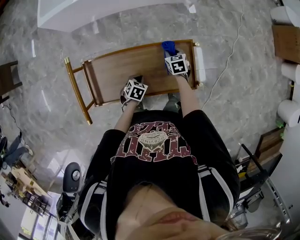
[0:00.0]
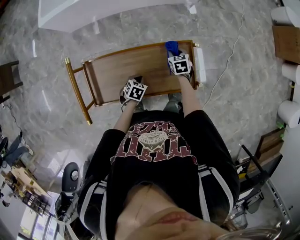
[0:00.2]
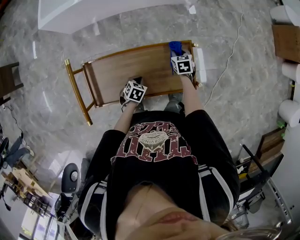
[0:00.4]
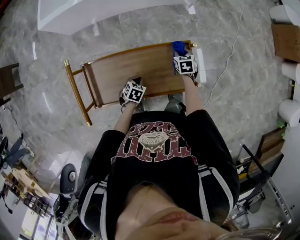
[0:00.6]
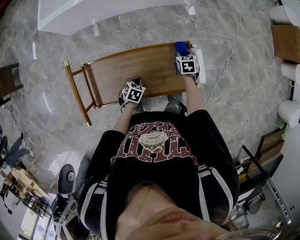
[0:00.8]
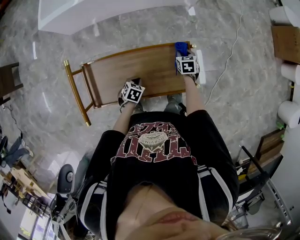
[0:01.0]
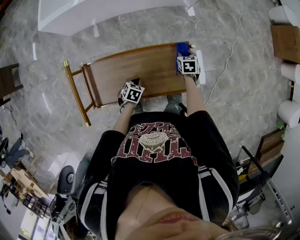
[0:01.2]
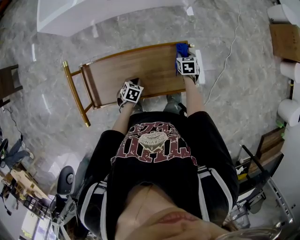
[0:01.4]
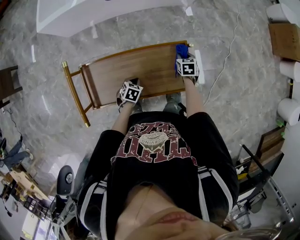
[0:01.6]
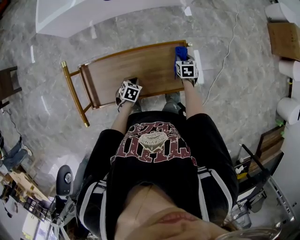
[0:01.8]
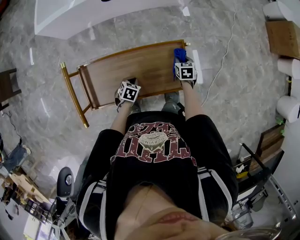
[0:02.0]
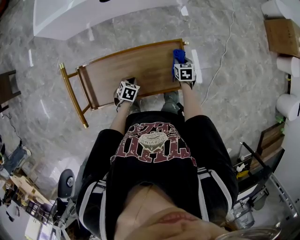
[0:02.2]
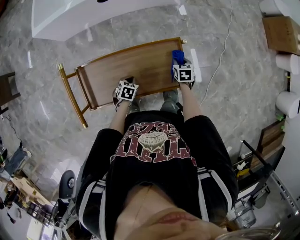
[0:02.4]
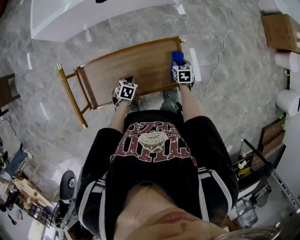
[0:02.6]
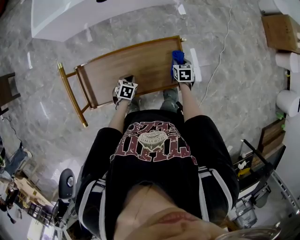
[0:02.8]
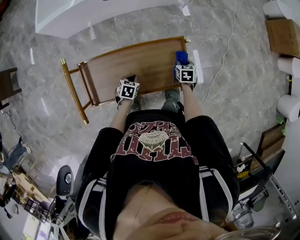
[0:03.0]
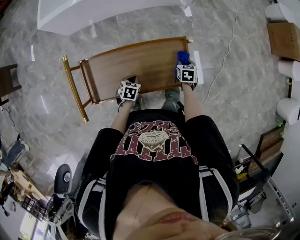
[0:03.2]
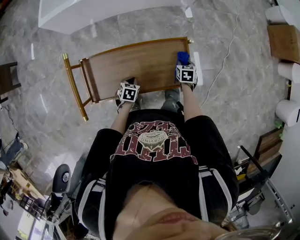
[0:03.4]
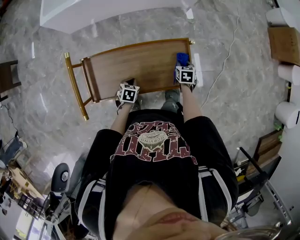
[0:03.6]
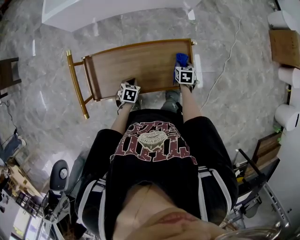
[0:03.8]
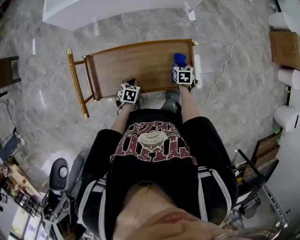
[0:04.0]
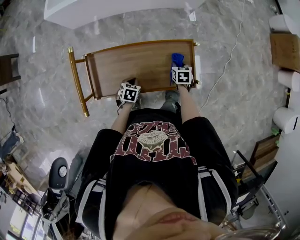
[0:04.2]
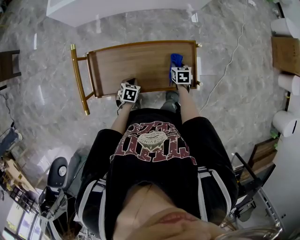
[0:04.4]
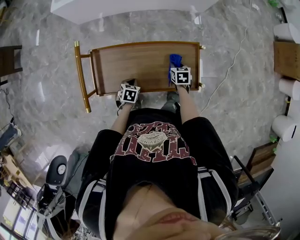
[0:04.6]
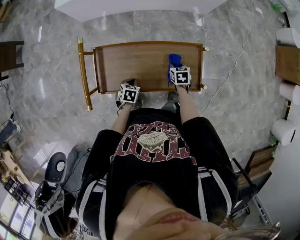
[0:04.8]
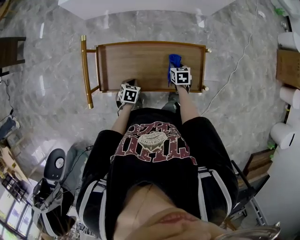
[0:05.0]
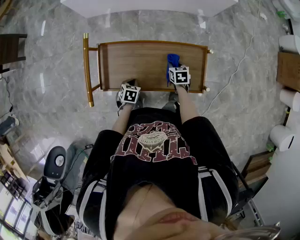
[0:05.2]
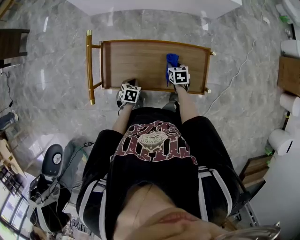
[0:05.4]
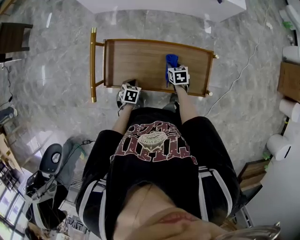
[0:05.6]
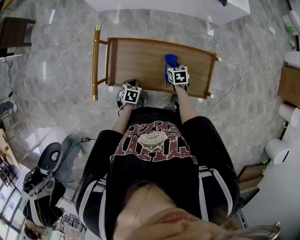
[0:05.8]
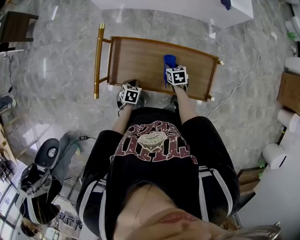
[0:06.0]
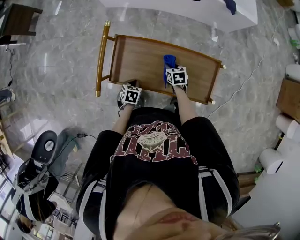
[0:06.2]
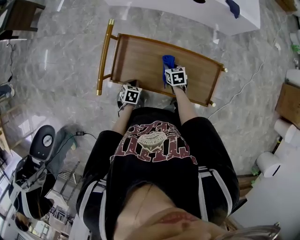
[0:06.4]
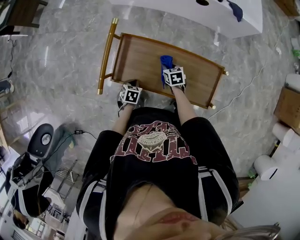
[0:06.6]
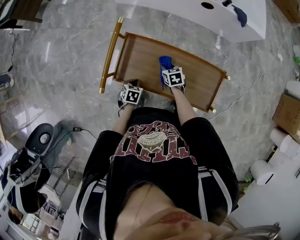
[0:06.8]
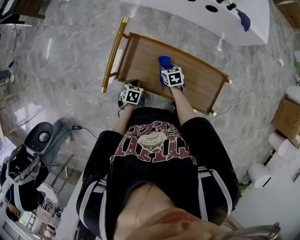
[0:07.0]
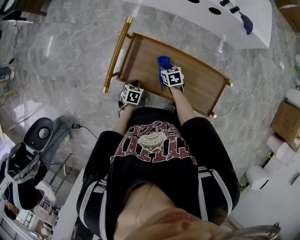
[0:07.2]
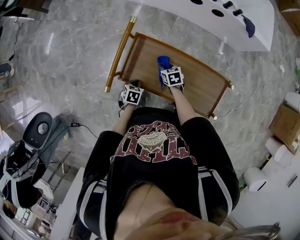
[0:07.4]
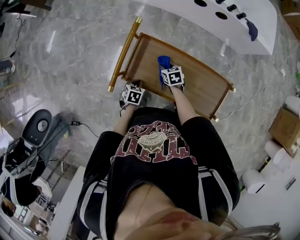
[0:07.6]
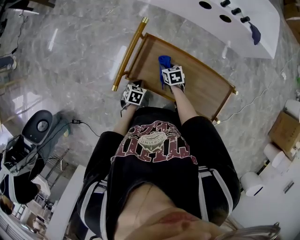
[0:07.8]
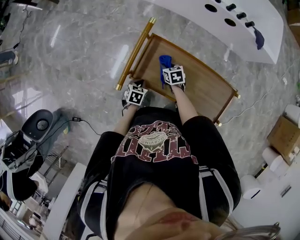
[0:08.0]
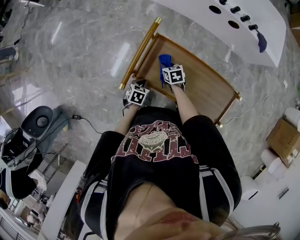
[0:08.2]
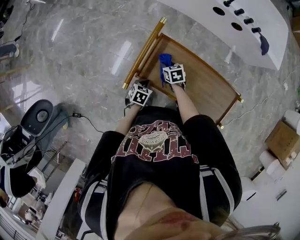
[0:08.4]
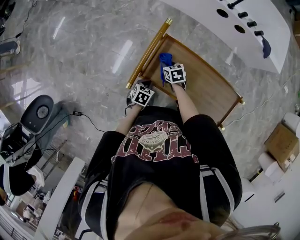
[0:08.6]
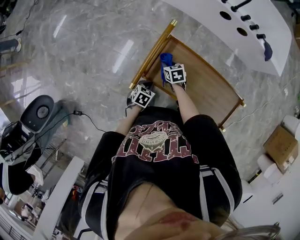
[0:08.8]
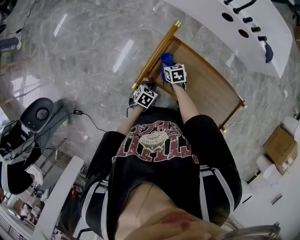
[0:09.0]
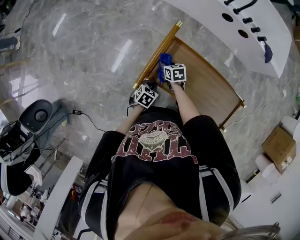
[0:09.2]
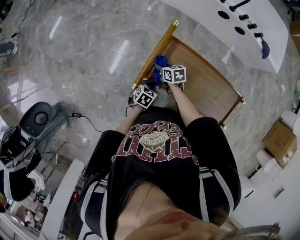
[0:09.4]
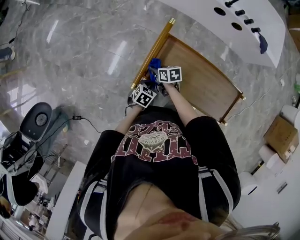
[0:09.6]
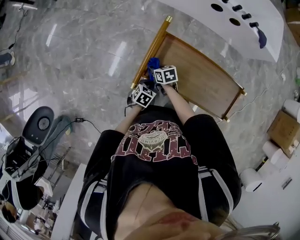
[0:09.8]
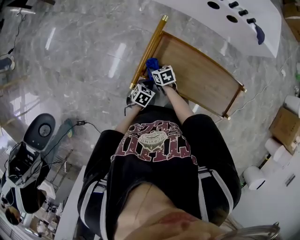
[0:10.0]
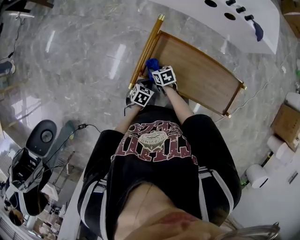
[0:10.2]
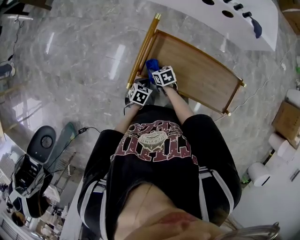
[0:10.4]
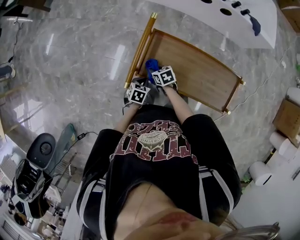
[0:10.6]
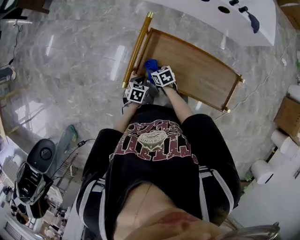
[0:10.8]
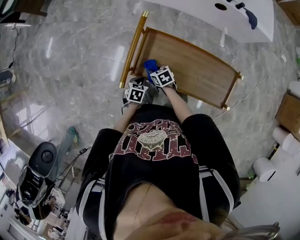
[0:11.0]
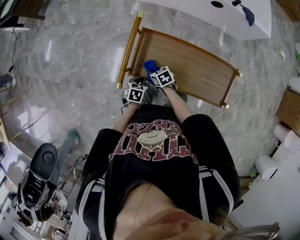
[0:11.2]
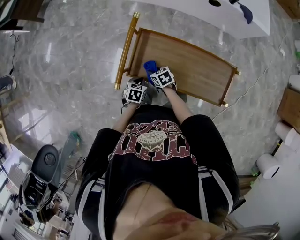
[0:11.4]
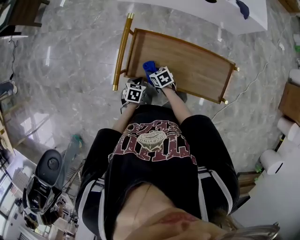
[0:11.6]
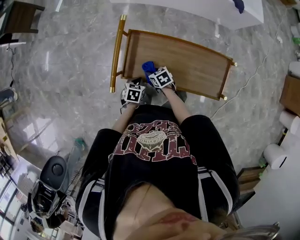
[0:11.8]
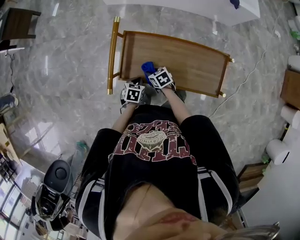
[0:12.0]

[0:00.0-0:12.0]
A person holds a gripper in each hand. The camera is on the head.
0:00.0 to 0:01.6: The right gripper heads to the right, covering approximately 10 cm.
0:01.6 to 0:03.0: The right gripper heads backward, covering some 5 cm.
0:03.0 to 0:04.4: The left gripper ends up about 5 cm from where it was; the right gripper travels to the left by roughly 10 cm.
0:04.4 to 0:06.0: The left gripper goes some 10 cm to the left. The right gripper travels to the left by some 15 cm, and swivels about 20 degrees.
0:06.0 to 0:07.6: The left gripper goes approximately 10 cm to the left, while the right gripper goes some 15 cm to the left.
0:07.6 to 0:09.0: The right gripper travels to the left by roughly 15 cm, while the left gripper moves approximately 5 cm.
0:09.0 to 0:10.4: The right gripper goes roughly 5 cm backward.
0:10.4 to 0:12.0: The right gripper moves to the right and backward, roughly 10 cm; the left gripper moves to the right, some 5 cm.

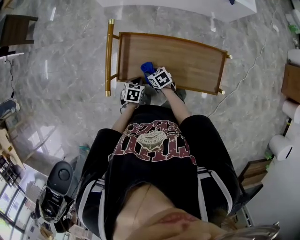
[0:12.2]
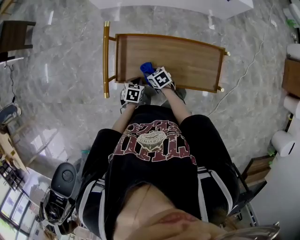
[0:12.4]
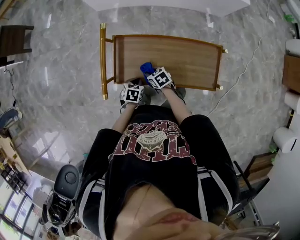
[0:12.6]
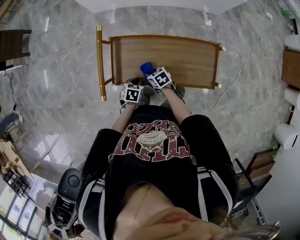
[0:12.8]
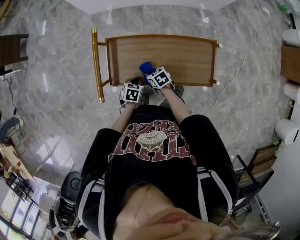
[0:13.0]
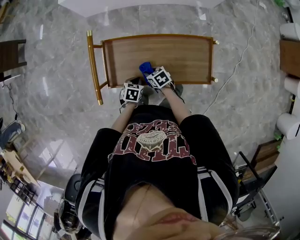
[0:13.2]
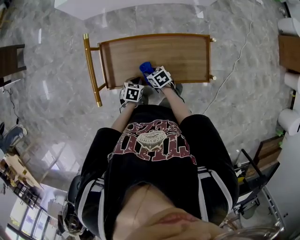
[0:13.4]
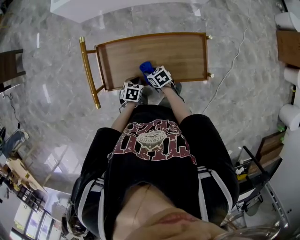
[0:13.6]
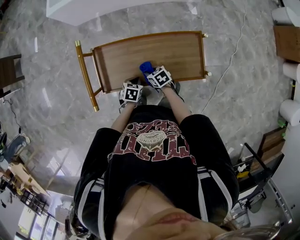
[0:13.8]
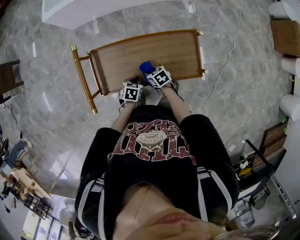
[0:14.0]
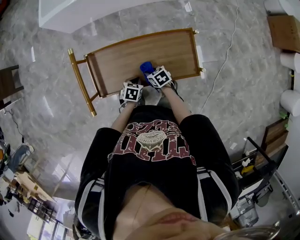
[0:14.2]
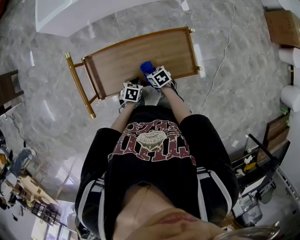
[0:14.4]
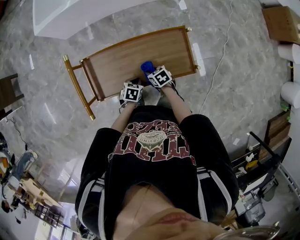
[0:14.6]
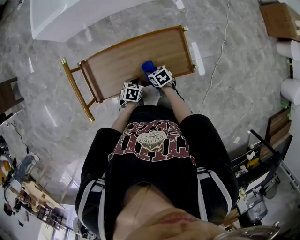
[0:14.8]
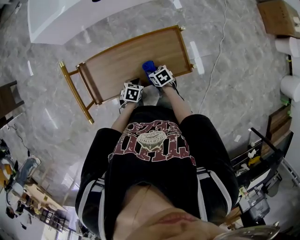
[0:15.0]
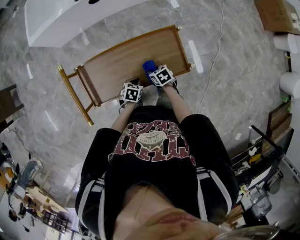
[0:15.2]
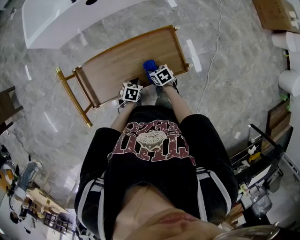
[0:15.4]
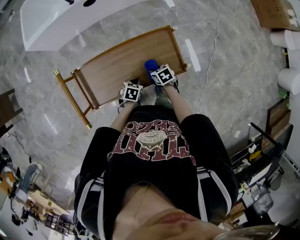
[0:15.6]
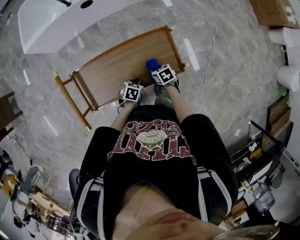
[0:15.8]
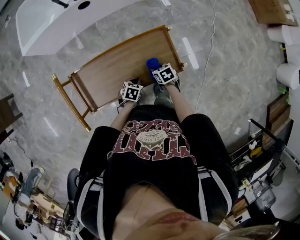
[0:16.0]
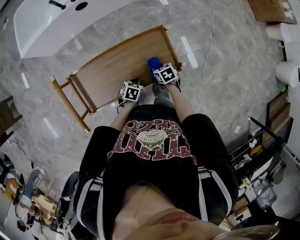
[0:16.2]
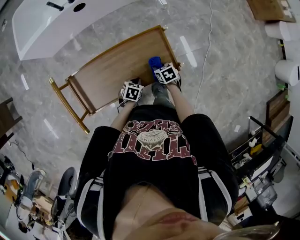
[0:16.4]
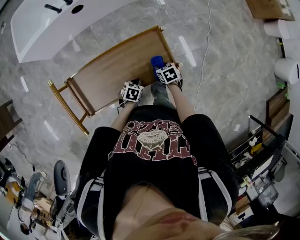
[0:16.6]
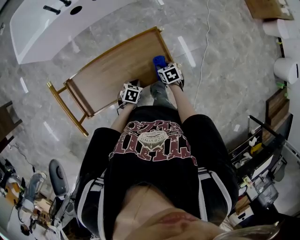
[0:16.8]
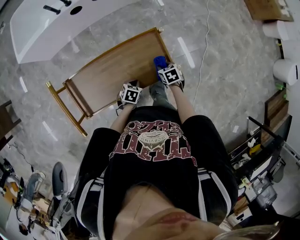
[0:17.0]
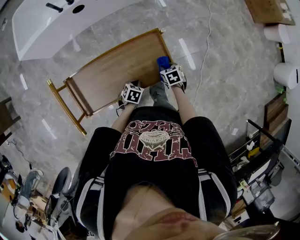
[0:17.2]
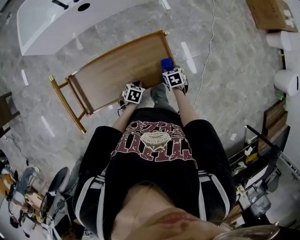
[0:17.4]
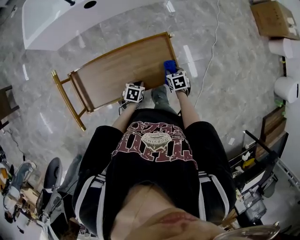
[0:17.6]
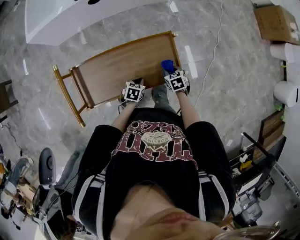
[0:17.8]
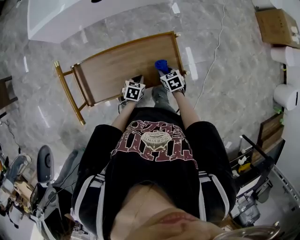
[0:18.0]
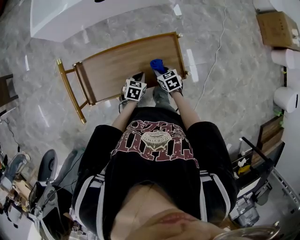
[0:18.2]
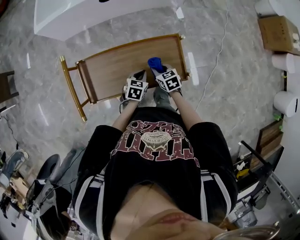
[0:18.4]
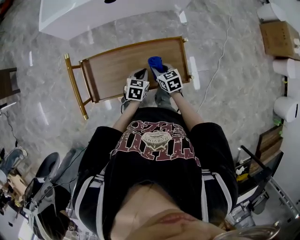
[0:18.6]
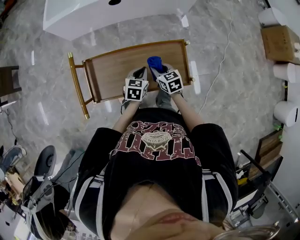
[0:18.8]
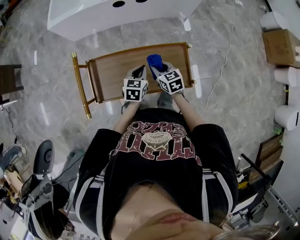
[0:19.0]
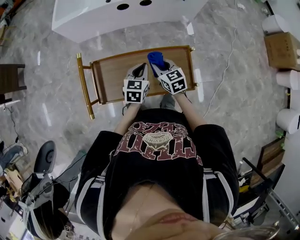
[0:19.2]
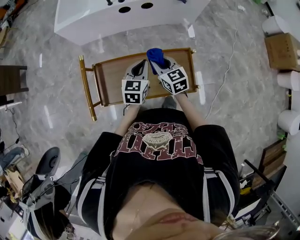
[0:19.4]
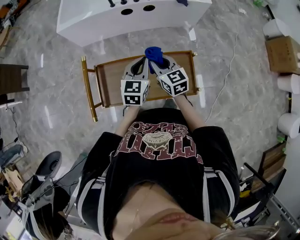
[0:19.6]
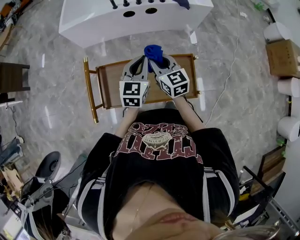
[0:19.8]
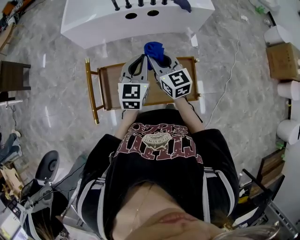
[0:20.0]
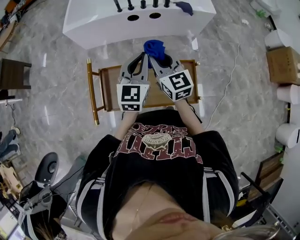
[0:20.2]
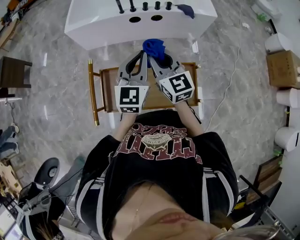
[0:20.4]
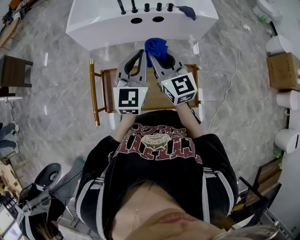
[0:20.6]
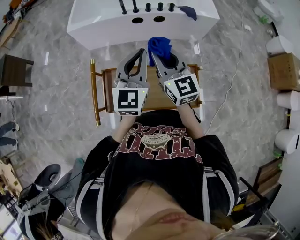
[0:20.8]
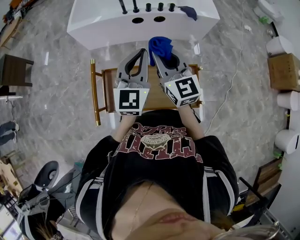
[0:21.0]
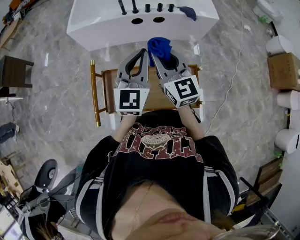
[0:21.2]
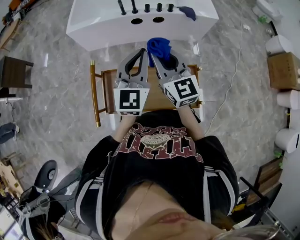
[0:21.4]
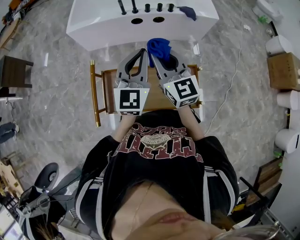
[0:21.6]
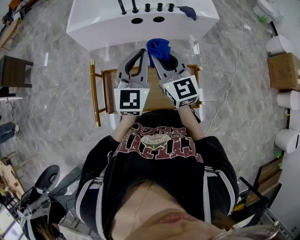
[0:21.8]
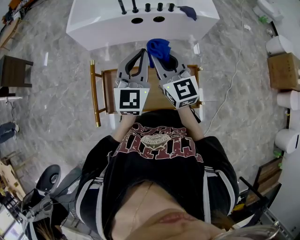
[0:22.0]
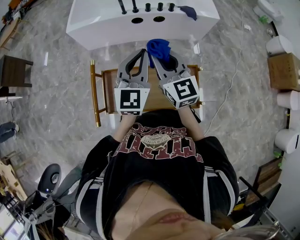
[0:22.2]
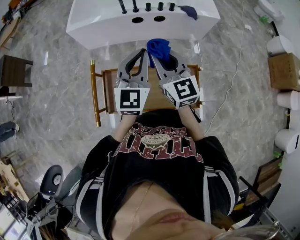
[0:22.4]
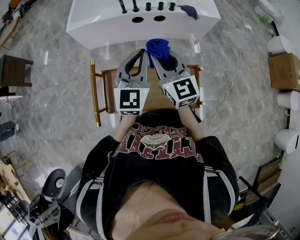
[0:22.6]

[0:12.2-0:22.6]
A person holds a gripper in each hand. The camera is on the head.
0:12.2 to 0:13.6: The grippers both shift to the right by some 10 cm.
0:13.6 to 0:15.2: Both grippers move to the right, roughly 15 cm.
0:15.2 to 0:16.6: The right gripper is displaced to the right by about 10 cm. Meanwhile the left gripper moves to the right, approximately 5 cm.
0:16.6 to 0:18.2: The left gripper changes place by approximately 5 cm; the right gripper is displaced to the left by approximately 5 cm.
0:18.2 to 0:19.6: The right gripper moves upward, to the left and forward, some 30 cm, and tips its fingers upward by about 30 degrees, while the left gripper heads upward and forward, covering approximately 30 cm, and tilts its fingers about 30 degrees upward.
0:19.6 to 0:21.2: The two grippers go about 15 cm upward. The right gripper swivels approximately 20 degrees, while the left gripper changes its angle by approximately 20 degrees.
0:21.2 to 0:22.6: The grippers move only a little.

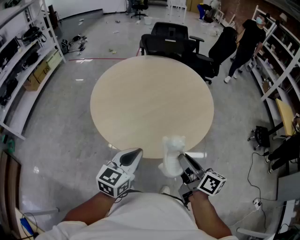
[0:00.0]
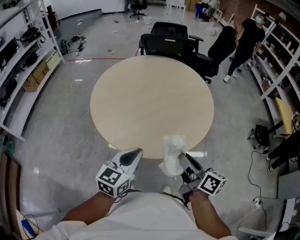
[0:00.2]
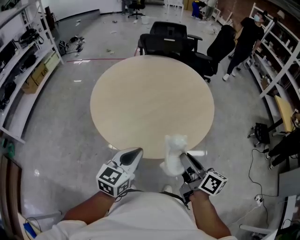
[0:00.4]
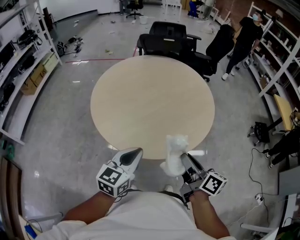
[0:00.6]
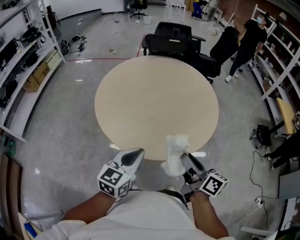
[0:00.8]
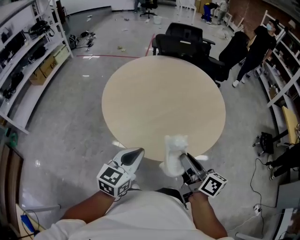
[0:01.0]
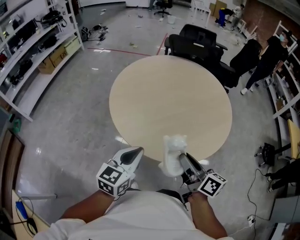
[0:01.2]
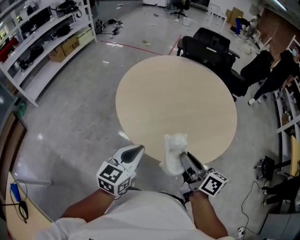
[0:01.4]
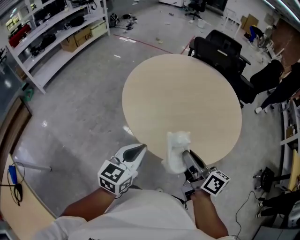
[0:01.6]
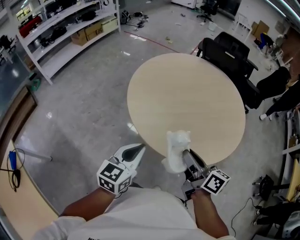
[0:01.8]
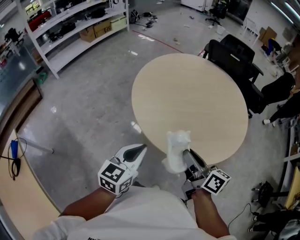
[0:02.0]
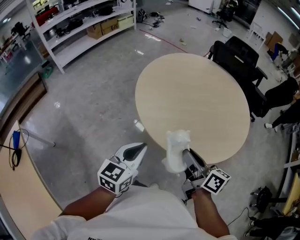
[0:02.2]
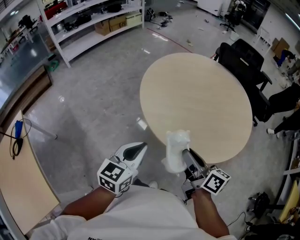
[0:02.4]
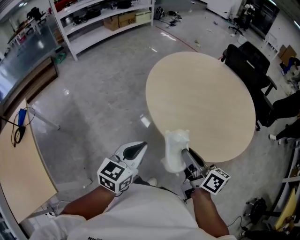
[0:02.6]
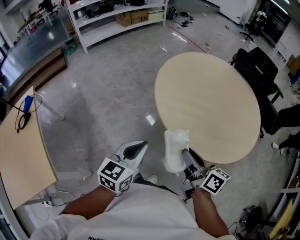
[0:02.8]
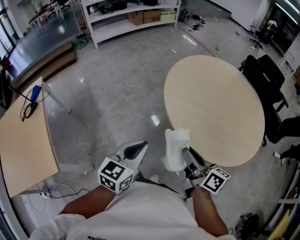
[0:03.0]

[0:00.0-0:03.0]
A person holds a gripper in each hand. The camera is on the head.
0:00.0 to 0:01.6: The left gripper is displaced to the left by some 5 cm, and swivels some 20 degrees. Meanwhile the right gripper heads to the left and forward, covering some 10 cm, and turns by roughly 20 degrees.
0:01.6 to 0:03.0: The right gripper ends up roughly 10 cm from where it was, and rotates approximately 30 degrees. The left gripper moves about 15 cm, and swivels roughly 30 degrees.
